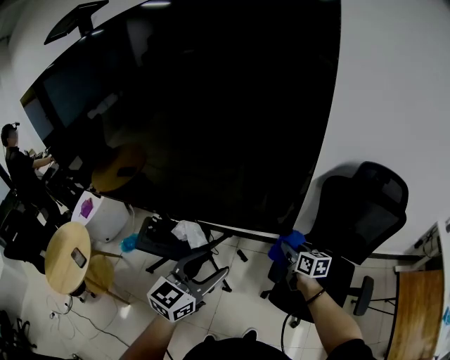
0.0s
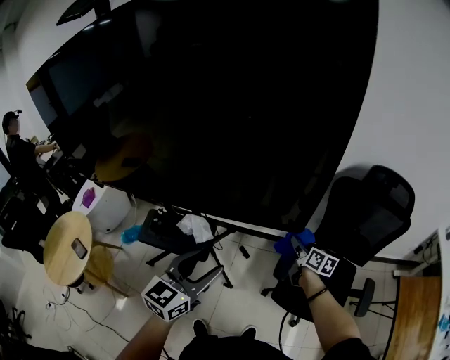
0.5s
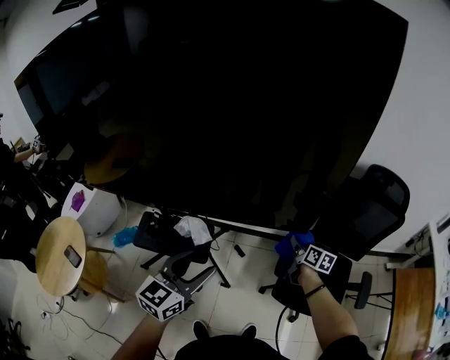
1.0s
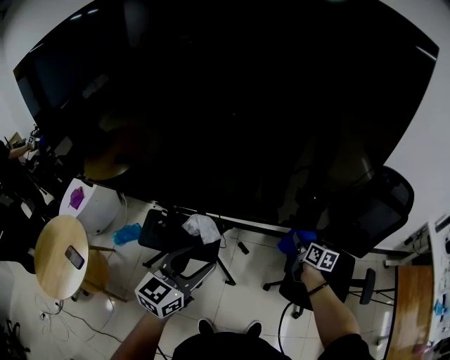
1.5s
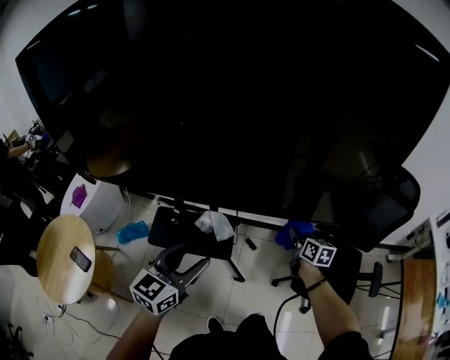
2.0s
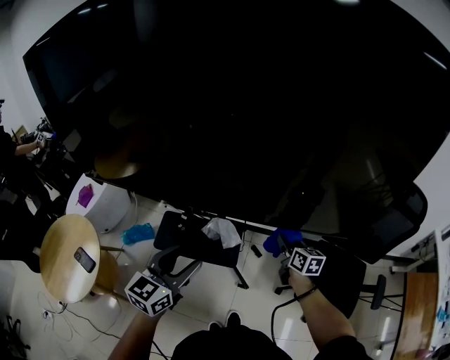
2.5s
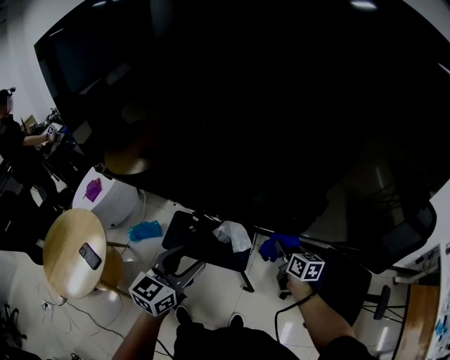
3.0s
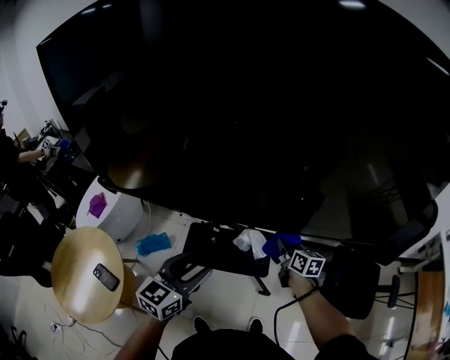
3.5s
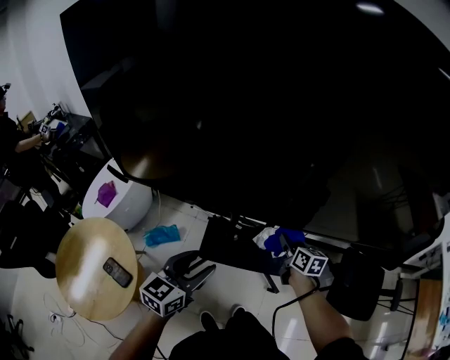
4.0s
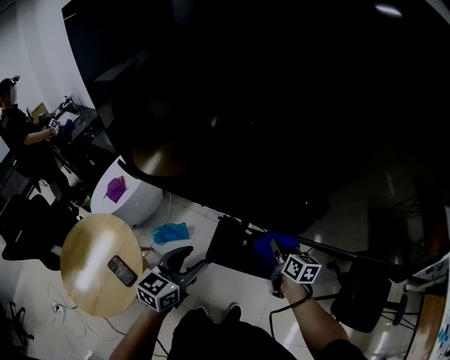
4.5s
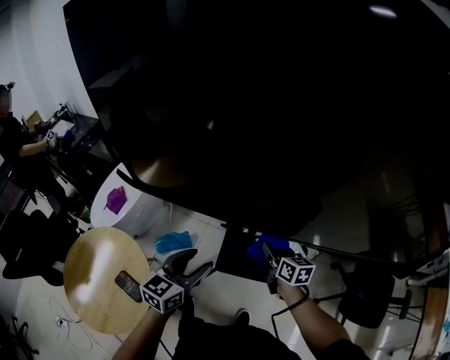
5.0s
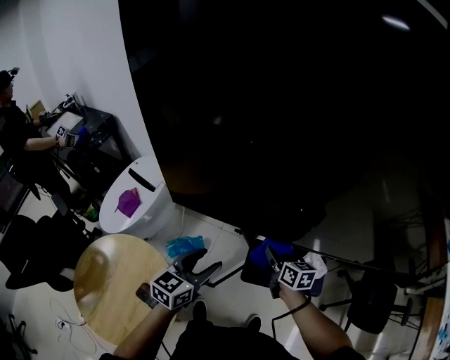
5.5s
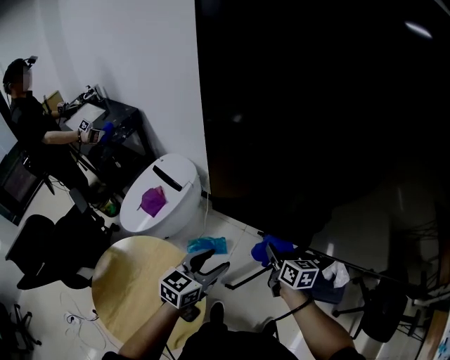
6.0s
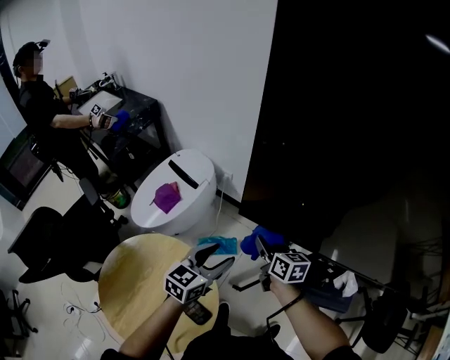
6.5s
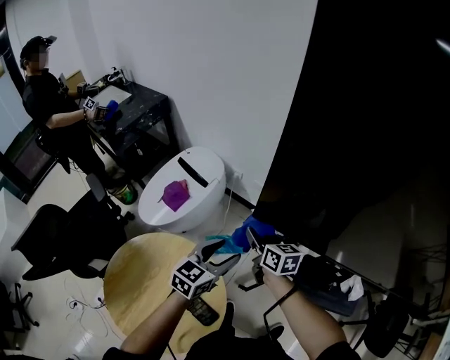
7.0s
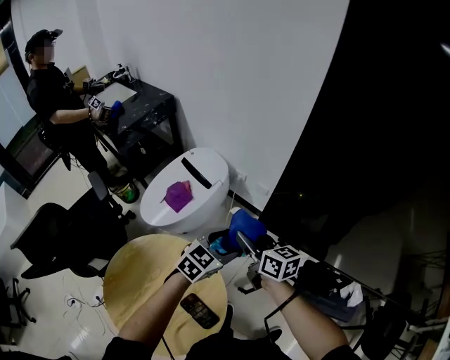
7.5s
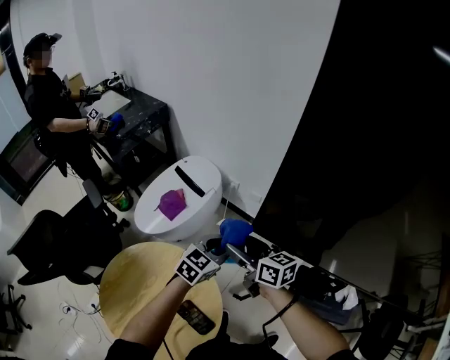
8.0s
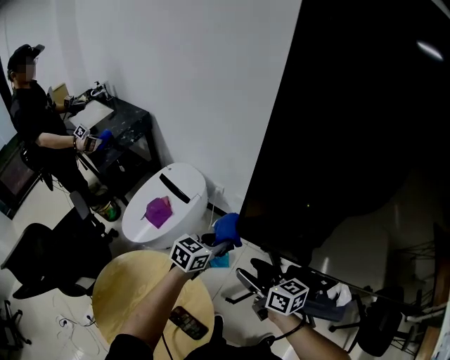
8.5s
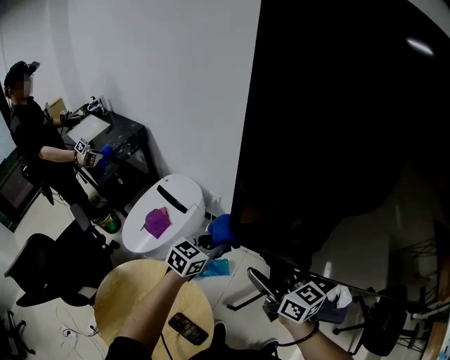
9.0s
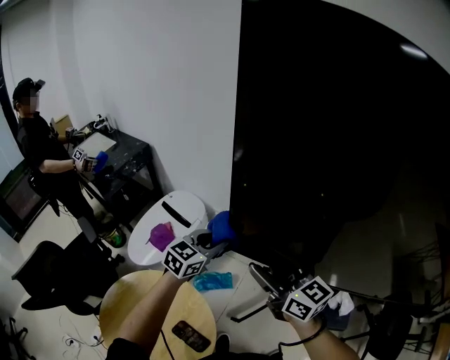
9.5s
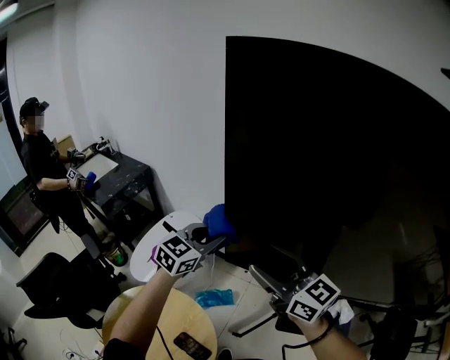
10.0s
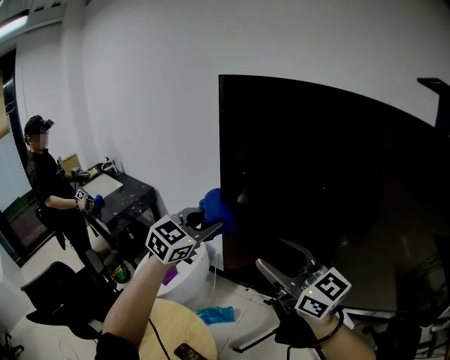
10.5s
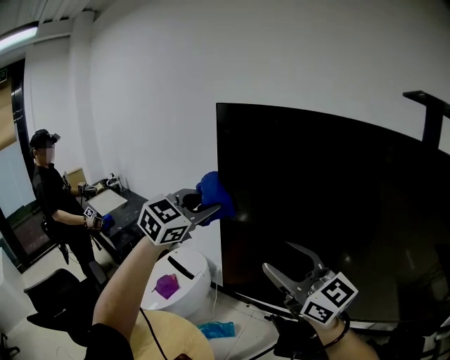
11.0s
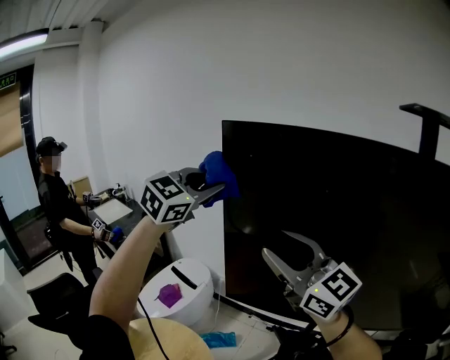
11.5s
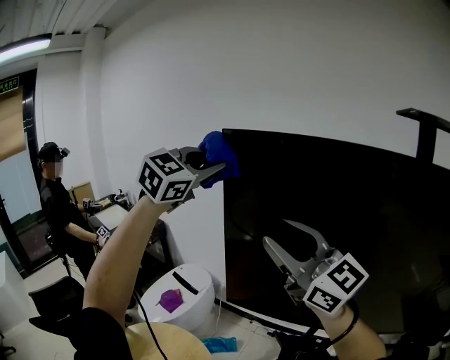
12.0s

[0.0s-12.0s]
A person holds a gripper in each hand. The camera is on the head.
0.0s to 2.0s: The left gripper travels to the left by about 30 cm. Meanwhile the right gripper is displaced to the left by approximately 15 cm.
2.0s to 4.0s: Both grippers move to the left, some 30 cm.
4.0s to 6.0s: The grippers both shift to the left by some 40 cm.
6.0s to 8.0s: The right gripper is displaced to the left by some 25 cm, swivels roughly 30 degrees, and opens its fingers; the left gripper goes roughly 15 cm forward and to the left, and closes.
8.0s to 10.0s: The left gripper moves upward, approximately 20 cm; the right gripper heads upward and to the right, covering some 30 cm, and changes its angle by approximately 30 degrees.
10.0s to 12.0s: The right gripper travels upward by approximately 25 cm, and turns by some 30 degrees. Meanwhile the left gripper heads upward, covering approximately 40 cm, and turns by roughly 30 degrees.

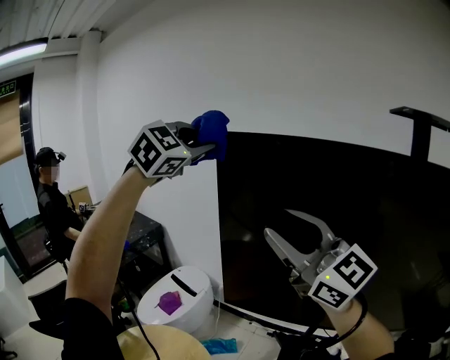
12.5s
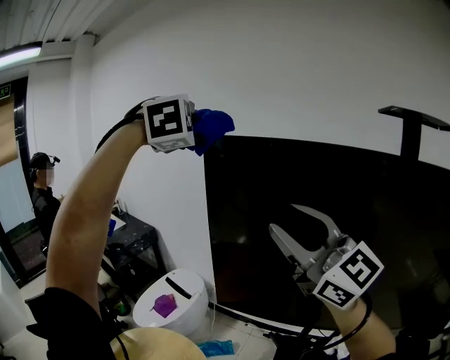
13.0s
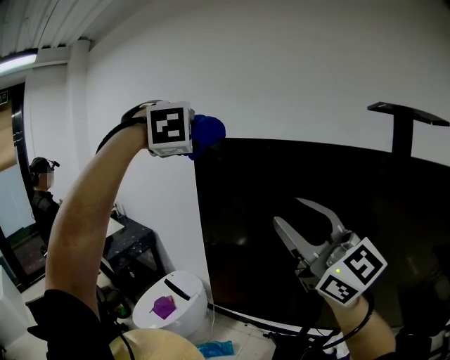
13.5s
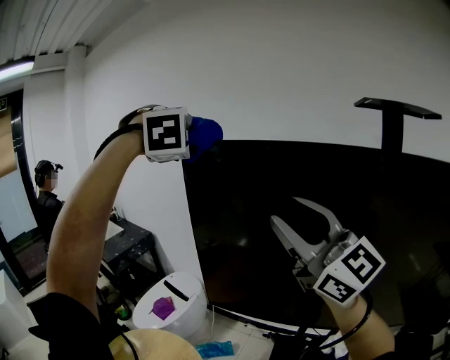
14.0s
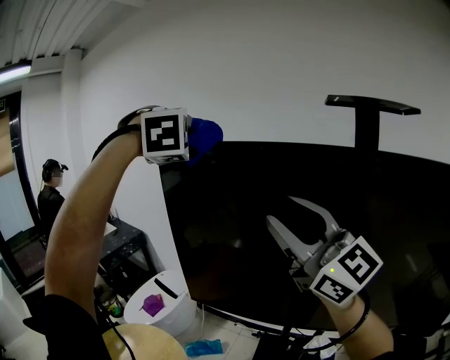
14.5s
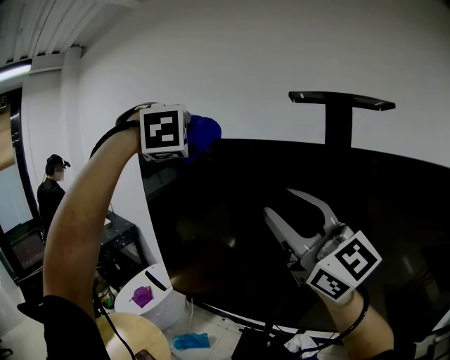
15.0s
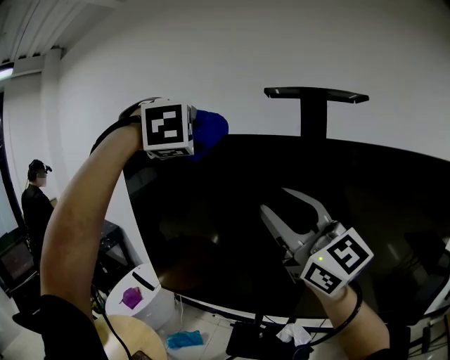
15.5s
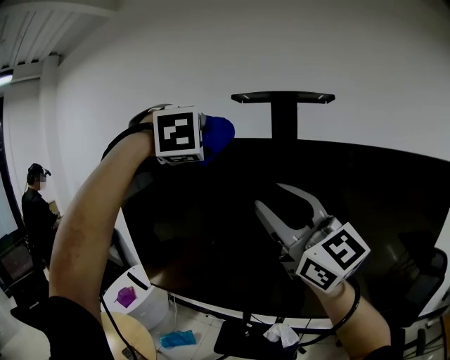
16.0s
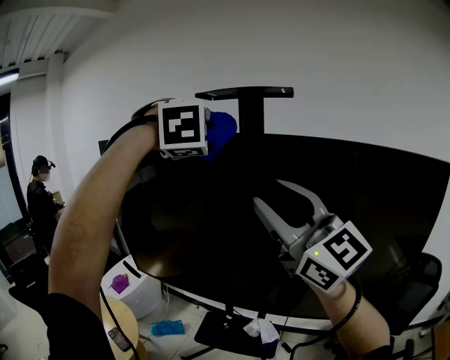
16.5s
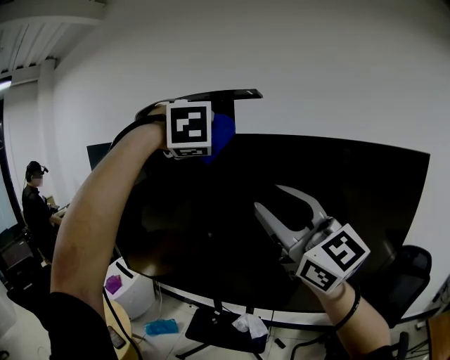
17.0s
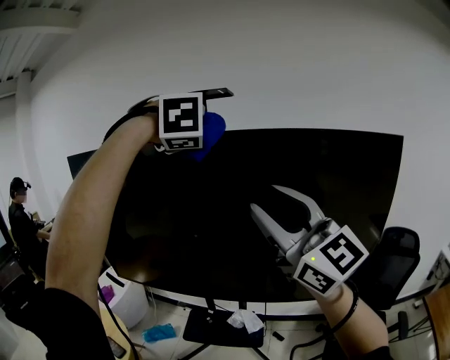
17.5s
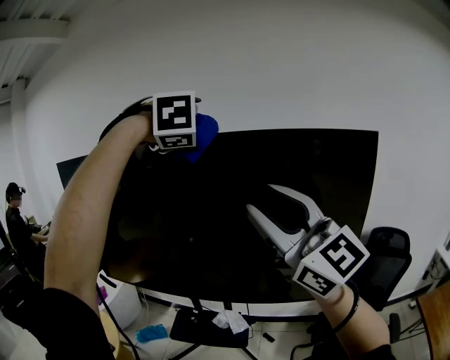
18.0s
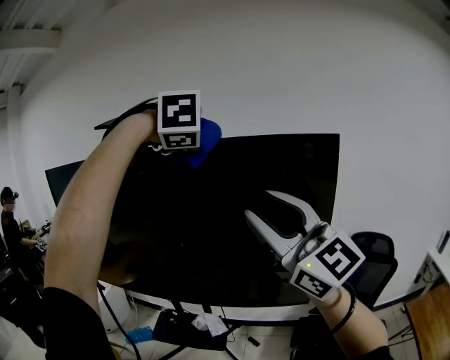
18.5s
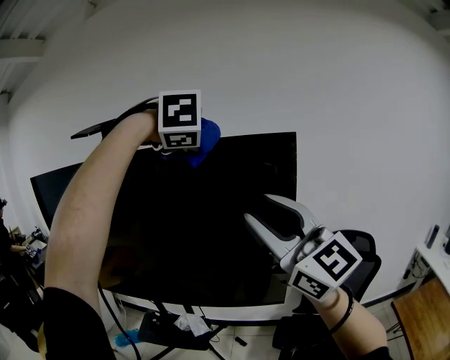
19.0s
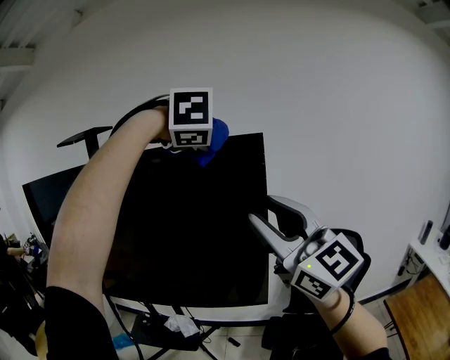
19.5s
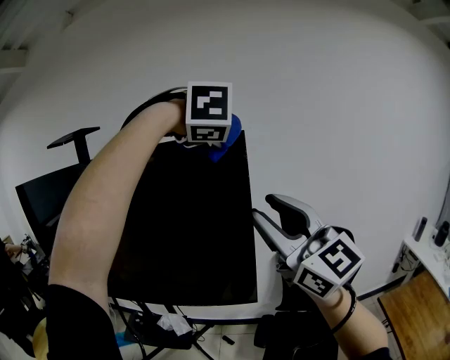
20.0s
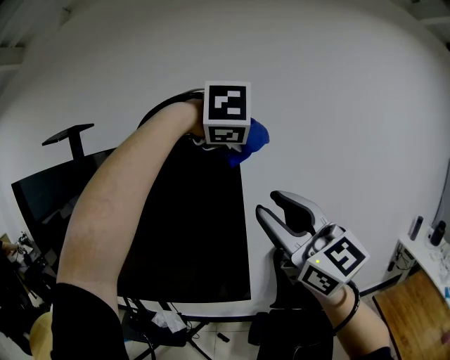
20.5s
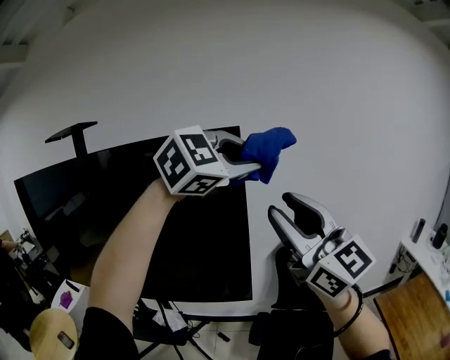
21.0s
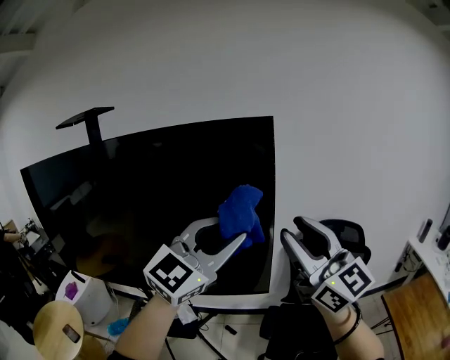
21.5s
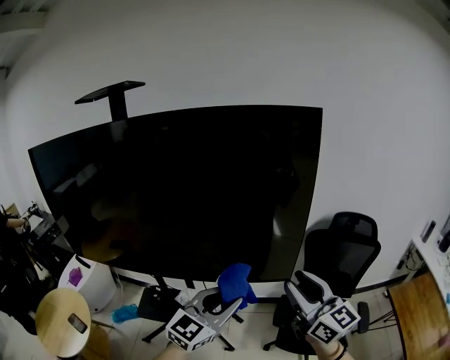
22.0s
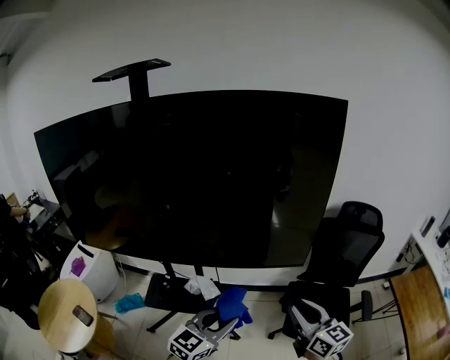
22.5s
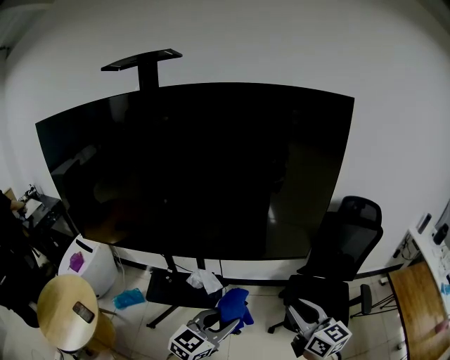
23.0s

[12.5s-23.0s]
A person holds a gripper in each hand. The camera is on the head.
12.5s to 14.5s: Both grippers move to the right and backward, approximately 15 cm. The left gripper changes its angle by about 50 degrees.
14.5s to 16.5s: Both grippers travel together to the right and backward, about 35 cm.
16.5s to 19.0s: Both grippers are carried to the right and backward, roughly 50 cm.
19.0s to 21.0s: The right gripper moves approximately 15 cm. The left gripper moves approximately 30 cm, and rotates about 60 degrees.
21.0s to 23.0s: The left gripper goes roughly 60 cm downward, to the left and backward, and twists some 50 degrees counterclockwise, seen from behind; the right gripper is displaced downward and to the left by approximately 40 cm, and tilts its fingers roughly 30 degrees downward.

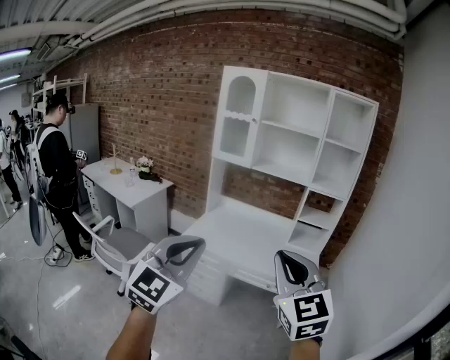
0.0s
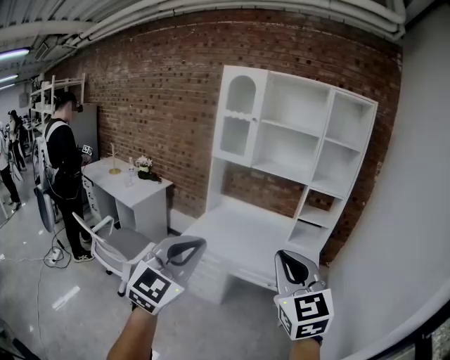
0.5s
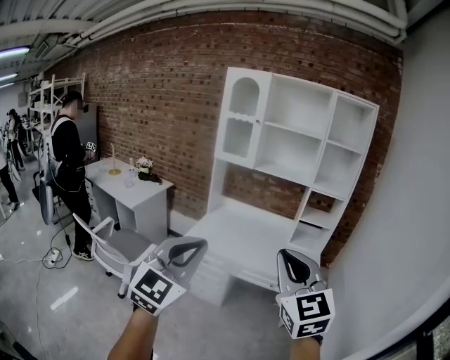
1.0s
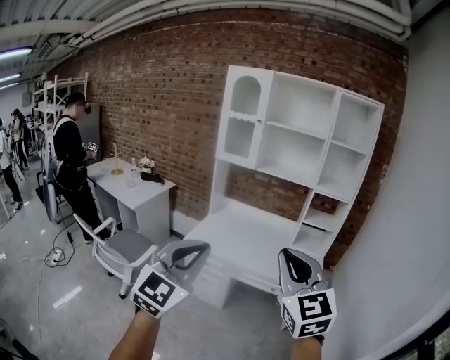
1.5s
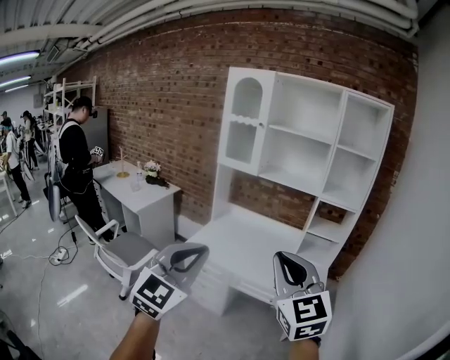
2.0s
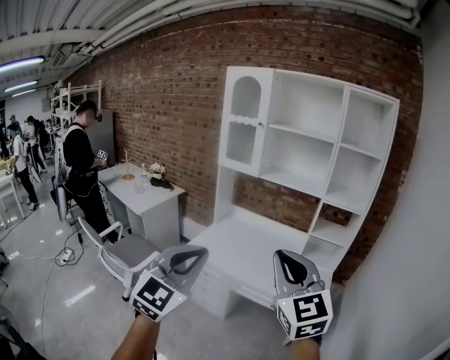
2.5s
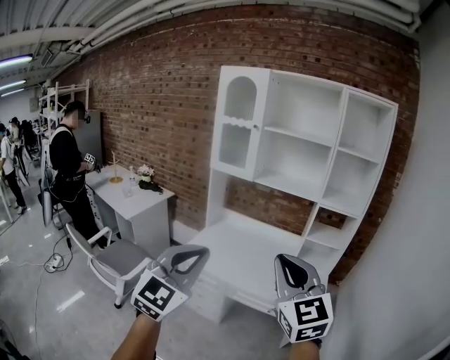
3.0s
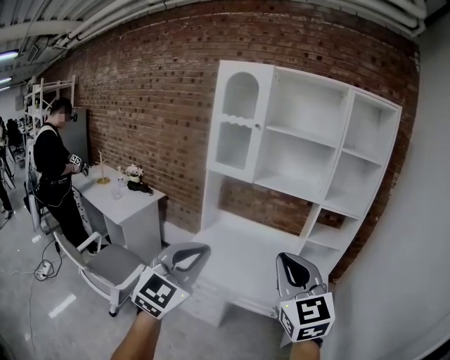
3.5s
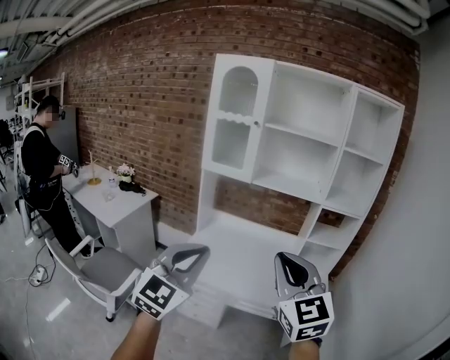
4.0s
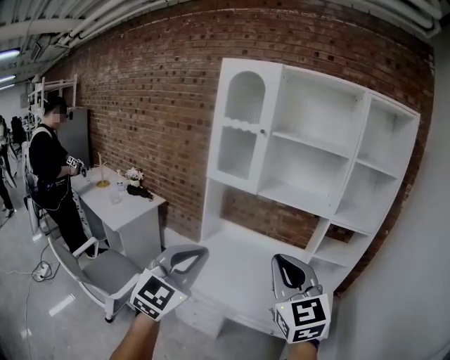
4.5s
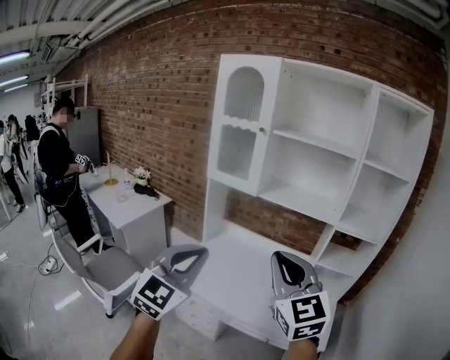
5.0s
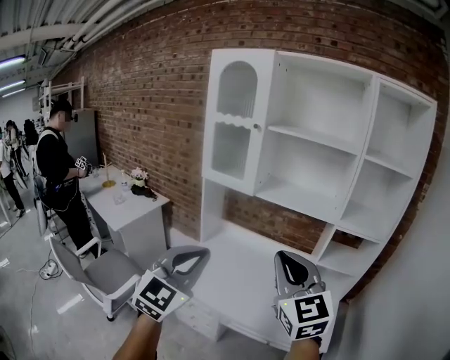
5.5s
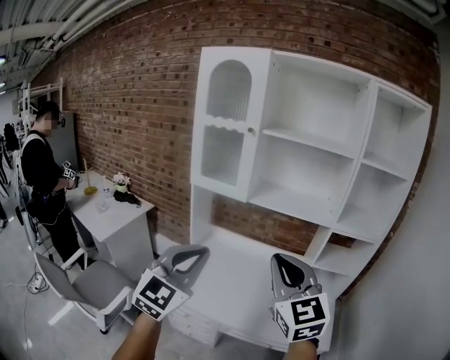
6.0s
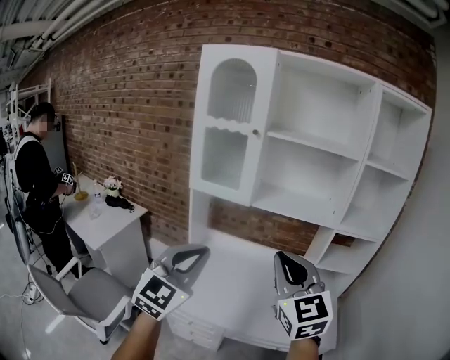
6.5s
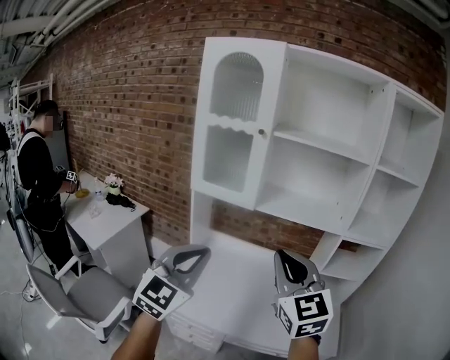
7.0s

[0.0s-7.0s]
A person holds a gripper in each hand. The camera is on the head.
0.0s to 2.0s: Both grippers move forward, roughly 10 cm.
2.0s to 3.5s: Both grippers travel together forward, about 15 cm.
3.5s to 5.0s: The two grippers go roughly 20 cm forward.
5.0s to 7.0s: The grippers both shift forward and to the left by approximately 20 cm.
